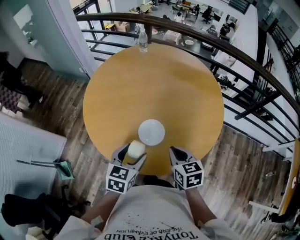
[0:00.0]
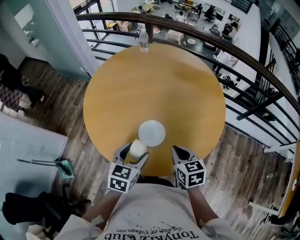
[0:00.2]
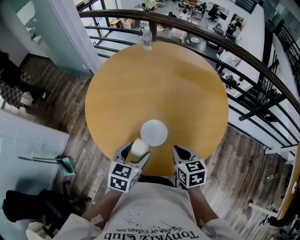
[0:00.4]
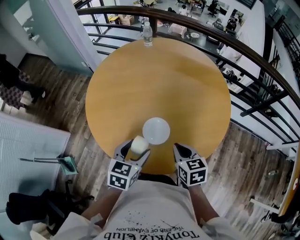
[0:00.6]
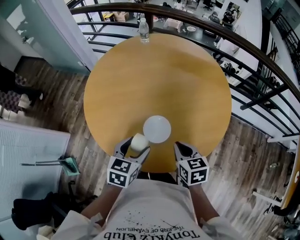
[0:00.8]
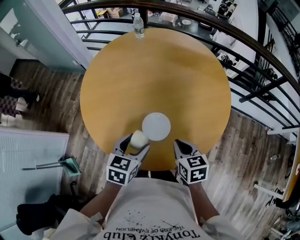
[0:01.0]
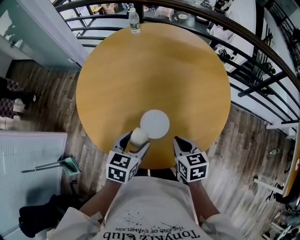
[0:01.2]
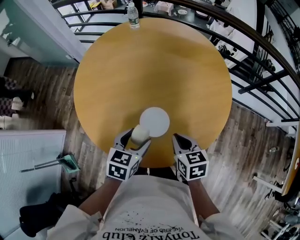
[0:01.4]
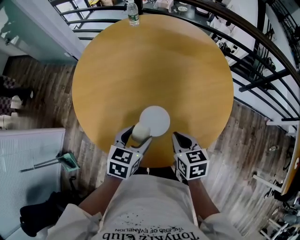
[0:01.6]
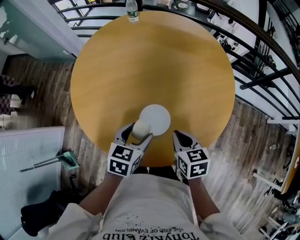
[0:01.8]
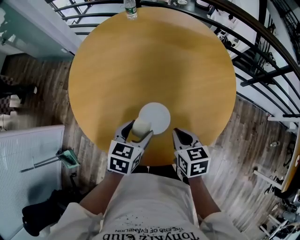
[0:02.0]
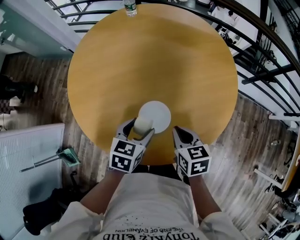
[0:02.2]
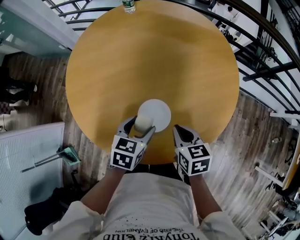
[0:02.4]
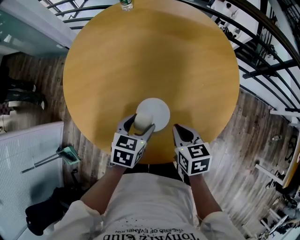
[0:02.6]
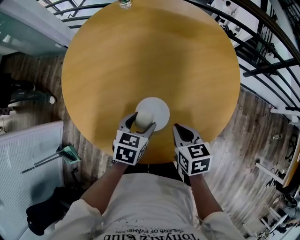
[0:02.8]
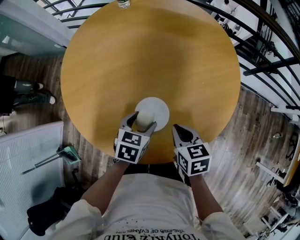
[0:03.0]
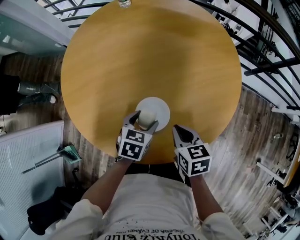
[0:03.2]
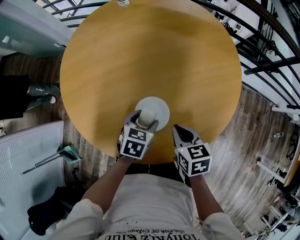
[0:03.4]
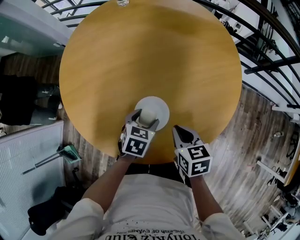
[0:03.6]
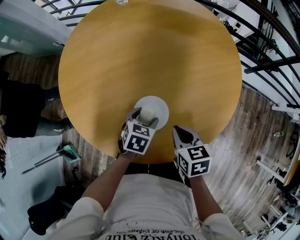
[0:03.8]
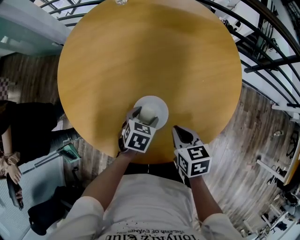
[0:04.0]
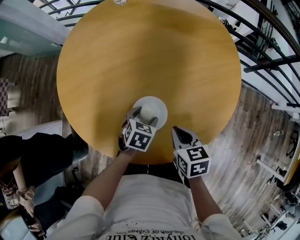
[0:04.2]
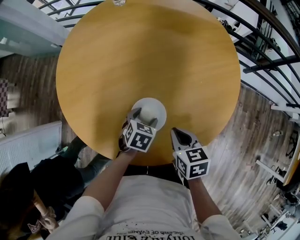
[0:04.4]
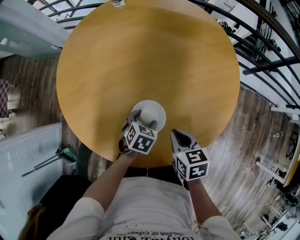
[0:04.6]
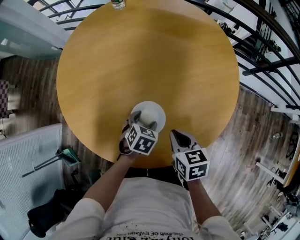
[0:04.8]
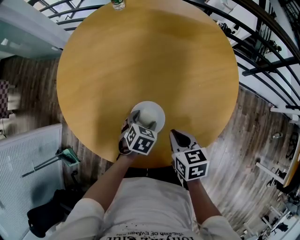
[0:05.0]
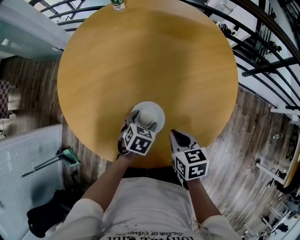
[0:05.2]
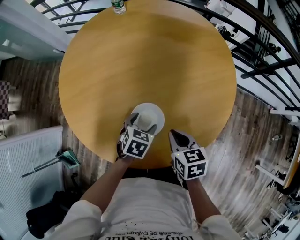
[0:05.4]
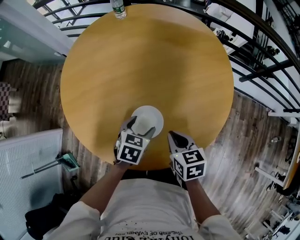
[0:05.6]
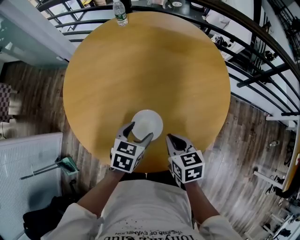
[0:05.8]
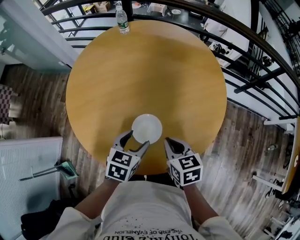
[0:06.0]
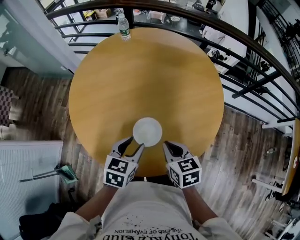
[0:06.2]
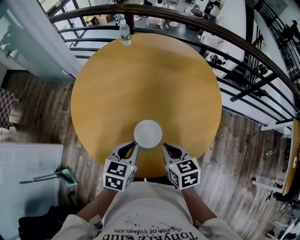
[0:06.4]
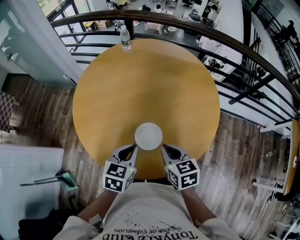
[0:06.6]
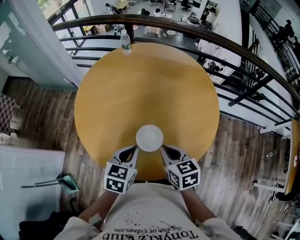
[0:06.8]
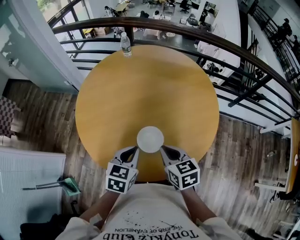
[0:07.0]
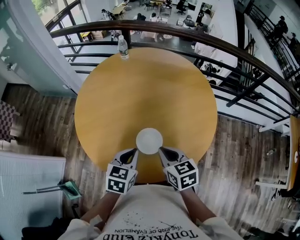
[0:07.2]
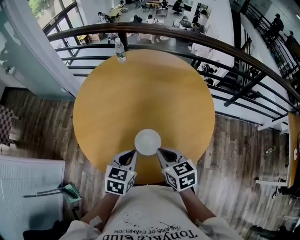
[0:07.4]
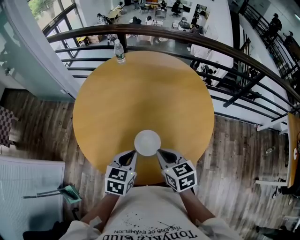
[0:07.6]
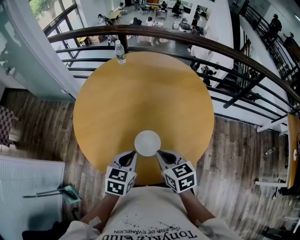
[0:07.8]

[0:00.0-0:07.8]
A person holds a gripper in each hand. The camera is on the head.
0:00.0 to 0:01.6: Both grippers move forward, some 5 cm.
0:01.6 to 0:03.2: The left gripper shifts about 10 cm downward and forward. Meanwhile the right gripper ends up about 5 cm from where it was.
0:03.2 to 0:04.6: The left gripper goes about 5 cm downward.
0:04.6 to 0:06.2: The right gripper goes approximately 10 cm upward; the left gripper is displaced upward by about 20 cm, and changes its angle by roughly 20 degrees.
0:06.2 to 0:07.8: The left gripper changes place by approximately 5 cm, and closes up. The right gripper moves upward, roughly 5 cm.

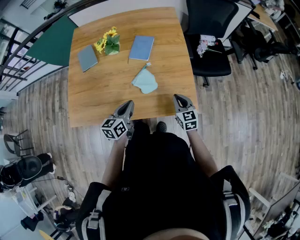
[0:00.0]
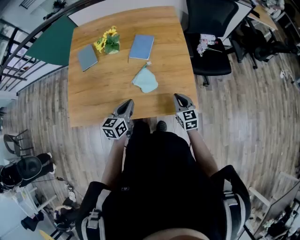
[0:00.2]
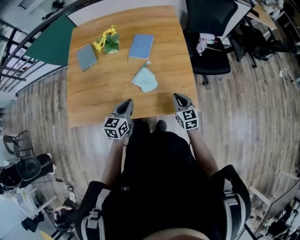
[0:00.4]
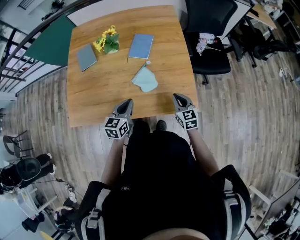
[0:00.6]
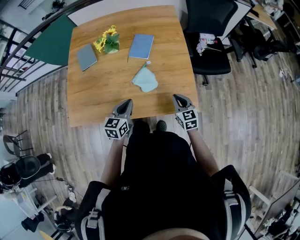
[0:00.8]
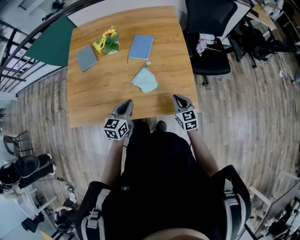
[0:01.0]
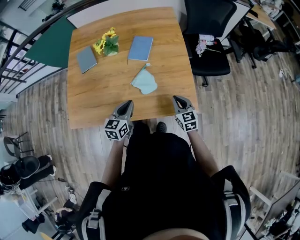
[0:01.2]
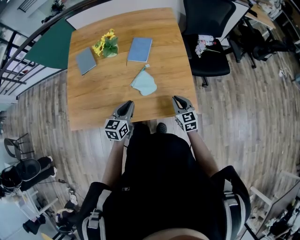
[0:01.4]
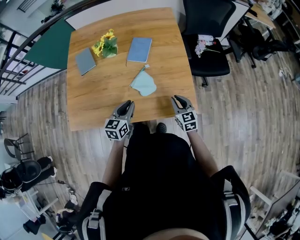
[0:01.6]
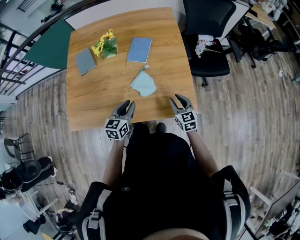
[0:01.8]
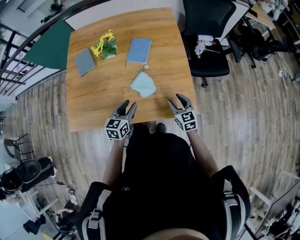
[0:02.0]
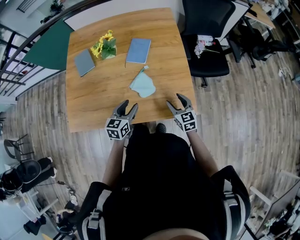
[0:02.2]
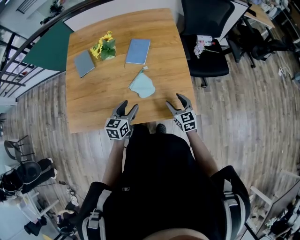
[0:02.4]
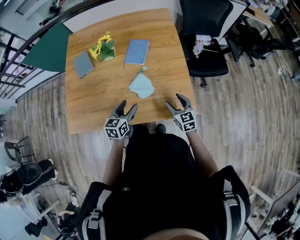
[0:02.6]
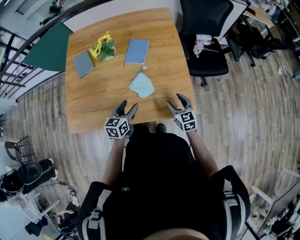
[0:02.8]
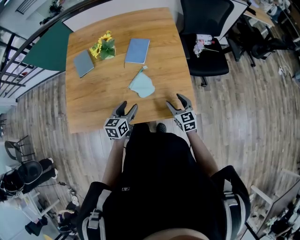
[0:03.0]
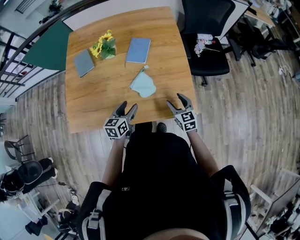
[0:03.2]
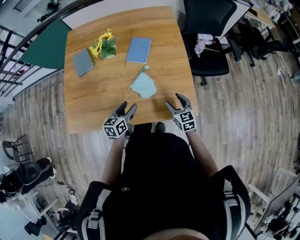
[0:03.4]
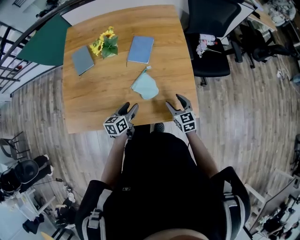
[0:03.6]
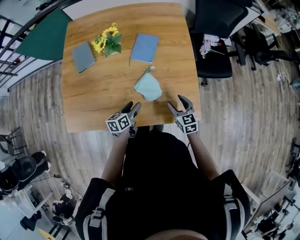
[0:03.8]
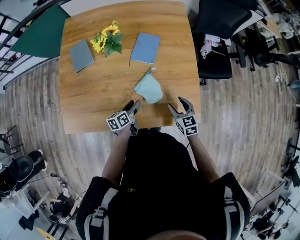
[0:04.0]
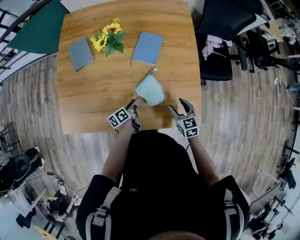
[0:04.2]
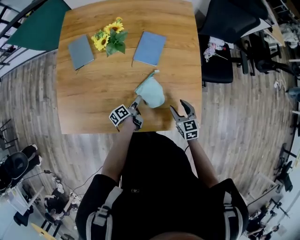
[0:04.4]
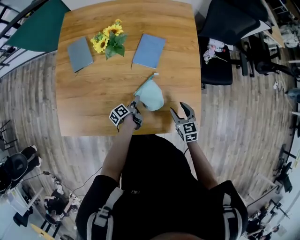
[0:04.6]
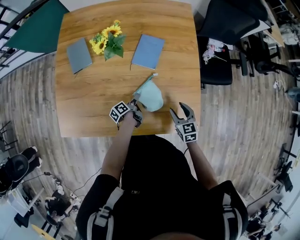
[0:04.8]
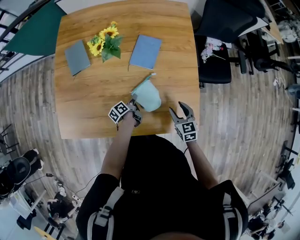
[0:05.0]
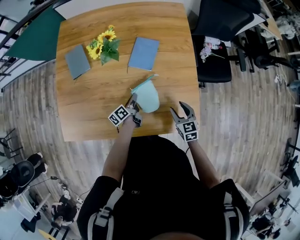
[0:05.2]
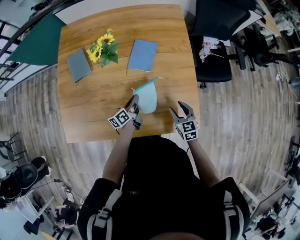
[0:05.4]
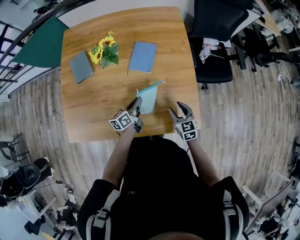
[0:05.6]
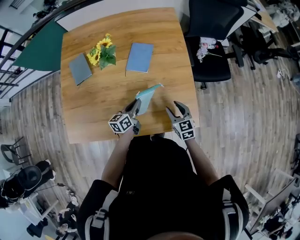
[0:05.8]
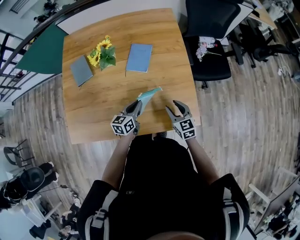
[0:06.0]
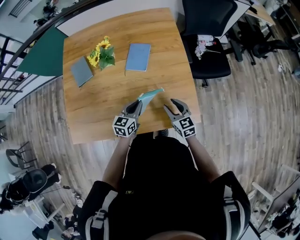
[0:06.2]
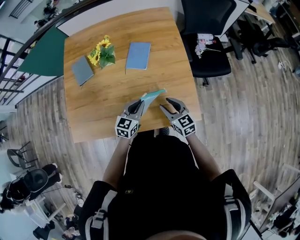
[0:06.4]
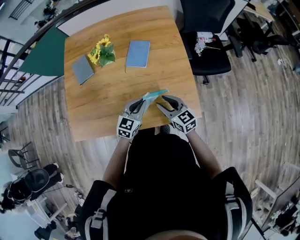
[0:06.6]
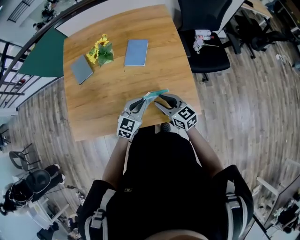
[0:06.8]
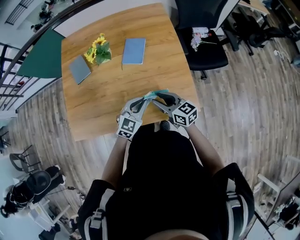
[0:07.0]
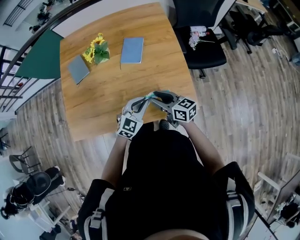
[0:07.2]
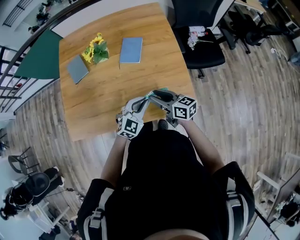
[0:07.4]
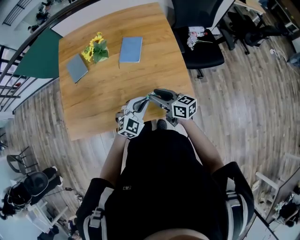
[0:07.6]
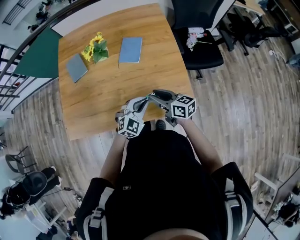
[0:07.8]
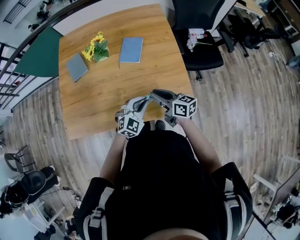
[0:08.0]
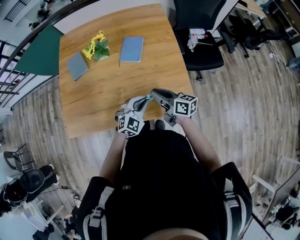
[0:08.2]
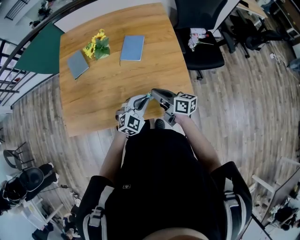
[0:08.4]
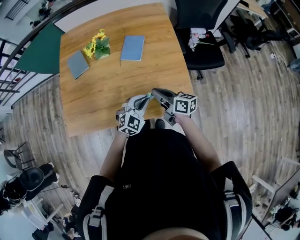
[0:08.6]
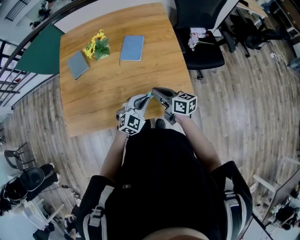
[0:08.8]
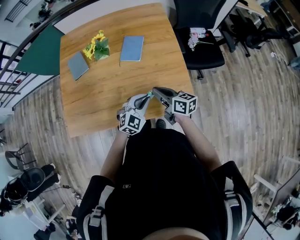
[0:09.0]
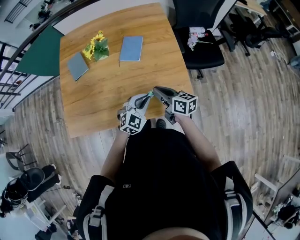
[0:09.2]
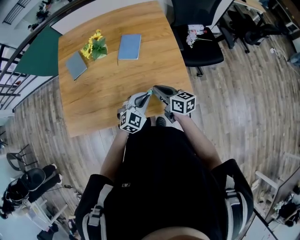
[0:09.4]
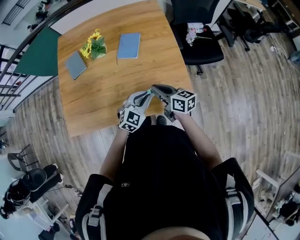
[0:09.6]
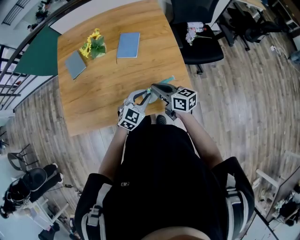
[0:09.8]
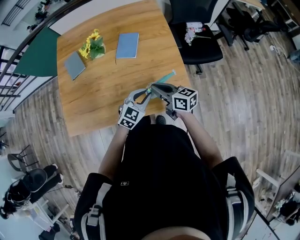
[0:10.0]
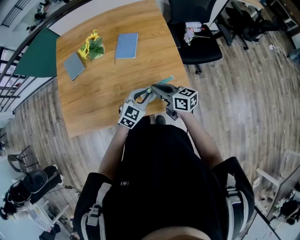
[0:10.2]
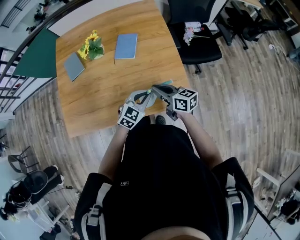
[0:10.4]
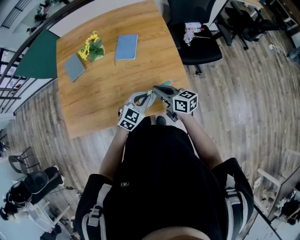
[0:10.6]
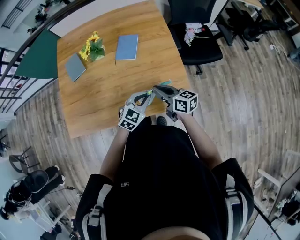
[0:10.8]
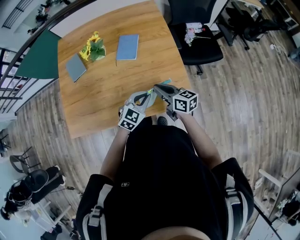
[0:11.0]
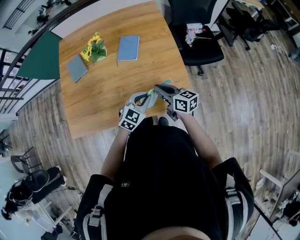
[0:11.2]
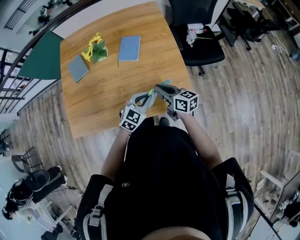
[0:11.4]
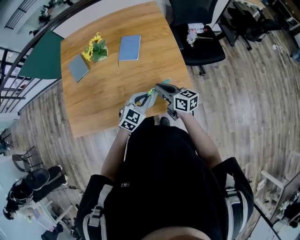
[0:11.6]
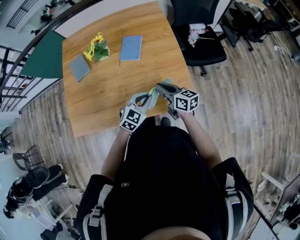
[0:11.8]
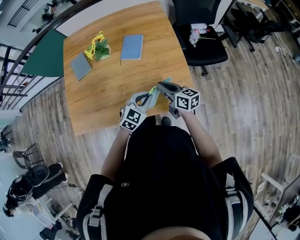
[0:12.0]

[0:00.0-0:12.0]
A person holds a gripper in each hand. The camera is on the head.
0:00.0 to 0:01.6: The grippers stay close to where they were, moving slightly.
0:01.6 to 0:03.0: The left gripper opens its fingers, while the right gripper opens up.
0:03.0 to 0:04.4: The right gripper moves forward, some 5 cm, while the left gripper heads downward and forward, covering roughly 20 cm, and twists about 70 degrees counterclockwise, seen from behind.
0:04.4 to 0:06.0: The left gripper shifts some 15 cm upward and to the right, rotates around the line of its fingers by approximately 60 degrees, clockwise from behind, and closes its fingers.
0:06.0 to 0:07.6: The left gripper heads backward, to the right and upward, covering roughly 15 cm, and rolls clockwise, seen from behind, by some 60 degrees; the right gripper moves upward and to the left, roughly 10 cm, and rotates some 40 degrees.
0:07.6 to 0:09.0: The right gripper closes its fingers.
0:09.0 to 0:12.0: The grippers make only small movements.

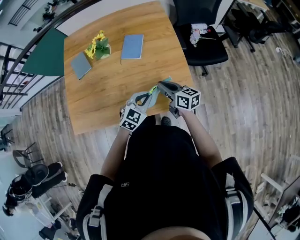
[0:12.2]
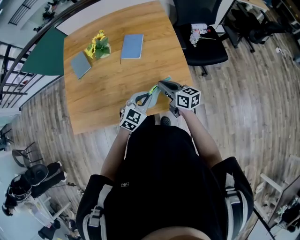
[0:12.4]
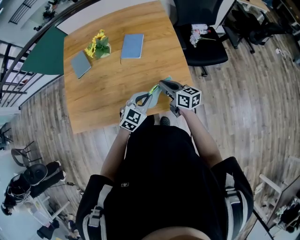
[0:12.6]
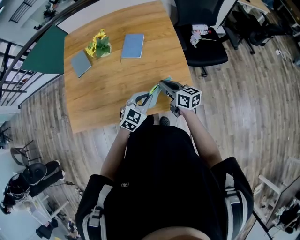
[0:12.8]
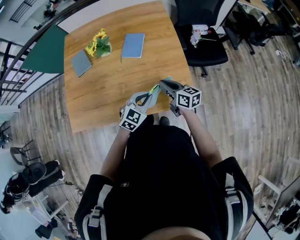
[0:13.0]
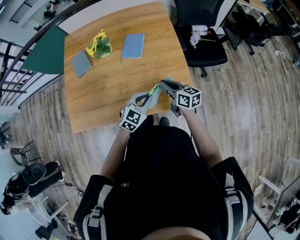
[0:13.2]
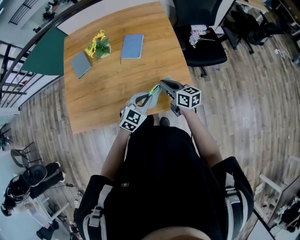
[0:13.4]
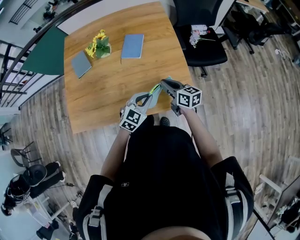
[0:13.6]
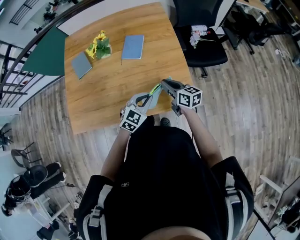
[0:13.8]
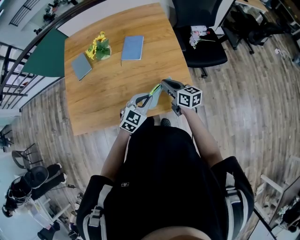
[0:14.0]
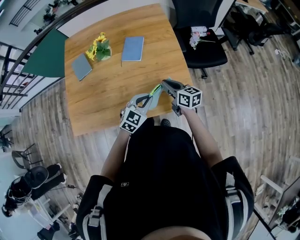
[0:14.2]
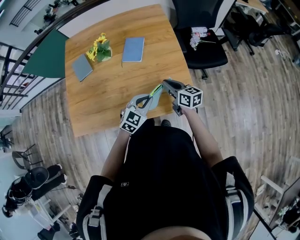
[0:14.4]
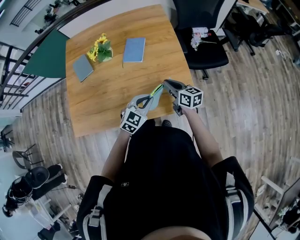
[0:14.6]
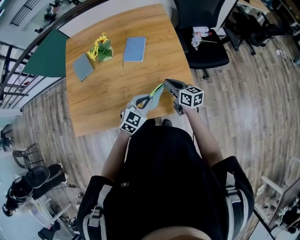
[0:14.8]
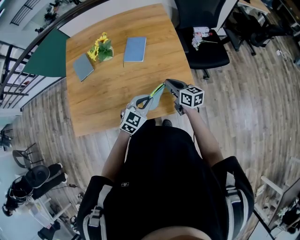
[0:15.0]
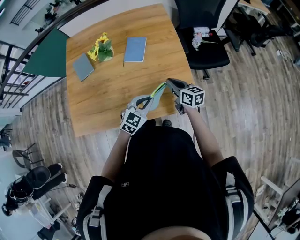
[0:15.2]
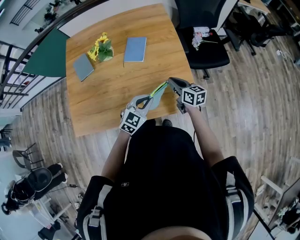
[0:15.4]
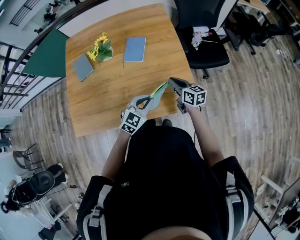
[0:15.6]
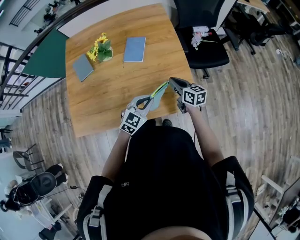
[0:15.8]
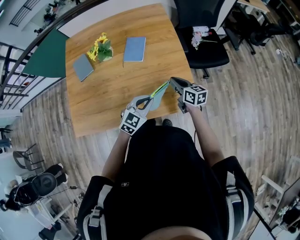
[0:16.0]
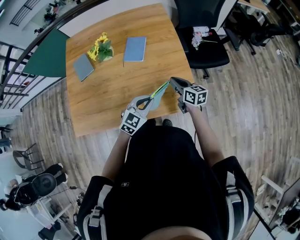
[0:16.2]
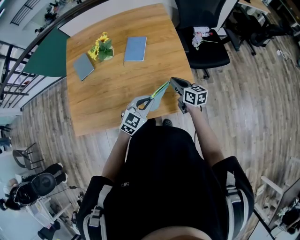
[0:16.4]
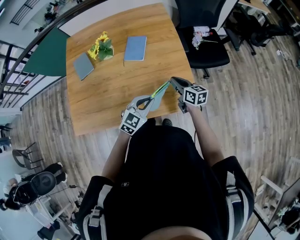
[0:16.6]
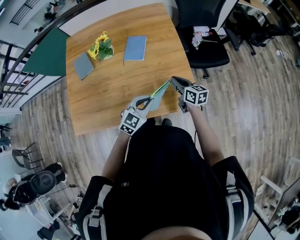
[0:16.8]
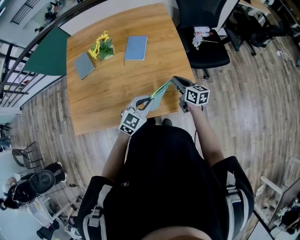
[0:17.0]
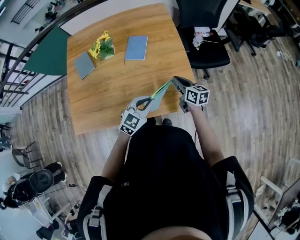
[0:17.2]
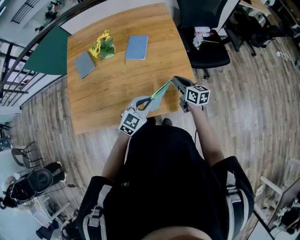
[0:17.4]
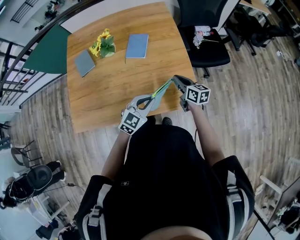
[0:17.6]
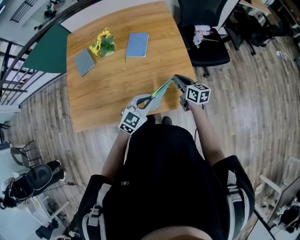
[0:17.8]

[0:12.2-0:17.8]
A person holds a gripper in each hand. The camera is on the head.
0:12.2 to 0:15.0: The grippers make only small movements.
0:15.0 to 0:17.8: The grippers make only small movements.
